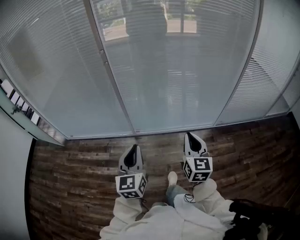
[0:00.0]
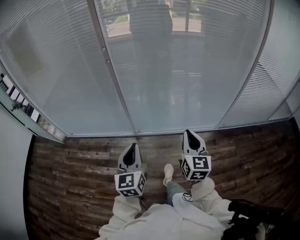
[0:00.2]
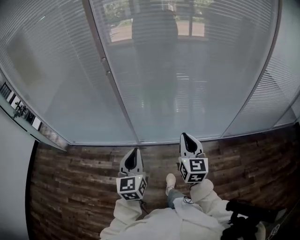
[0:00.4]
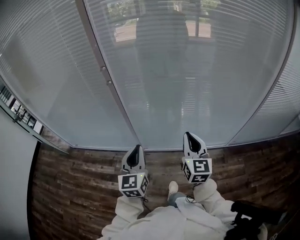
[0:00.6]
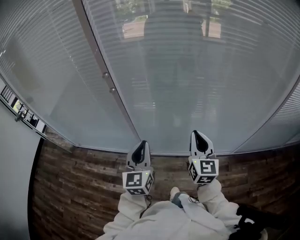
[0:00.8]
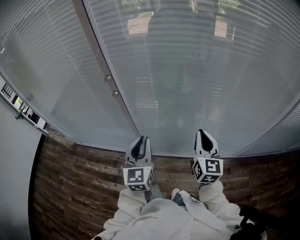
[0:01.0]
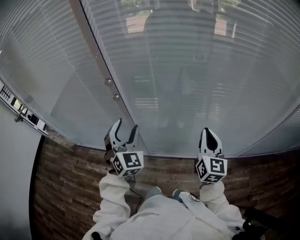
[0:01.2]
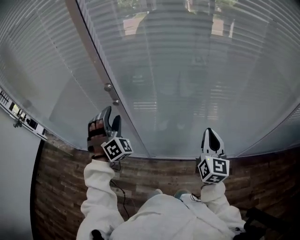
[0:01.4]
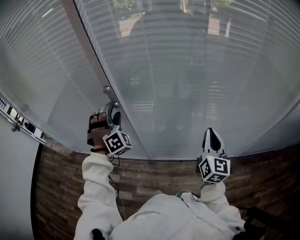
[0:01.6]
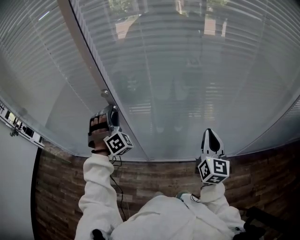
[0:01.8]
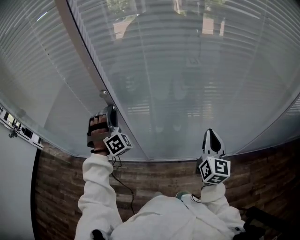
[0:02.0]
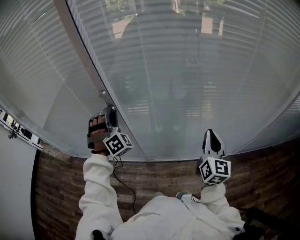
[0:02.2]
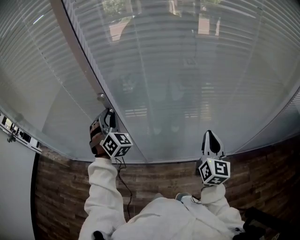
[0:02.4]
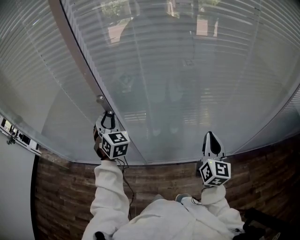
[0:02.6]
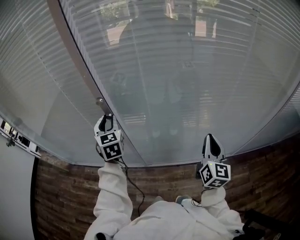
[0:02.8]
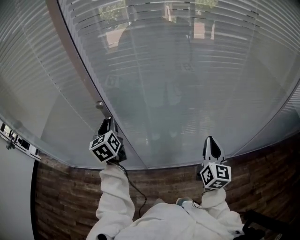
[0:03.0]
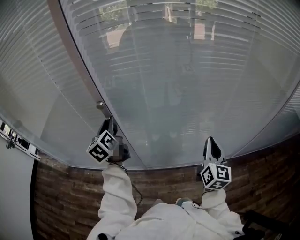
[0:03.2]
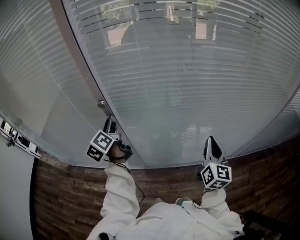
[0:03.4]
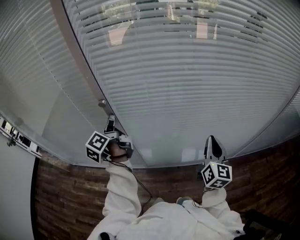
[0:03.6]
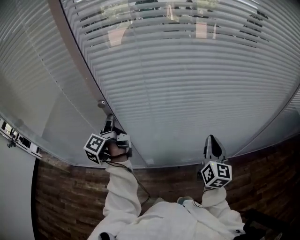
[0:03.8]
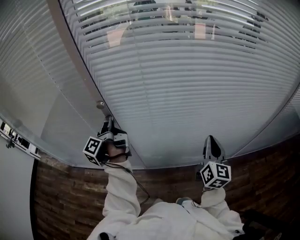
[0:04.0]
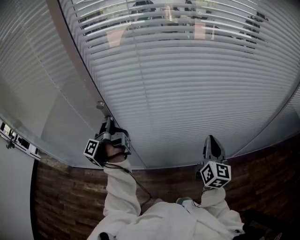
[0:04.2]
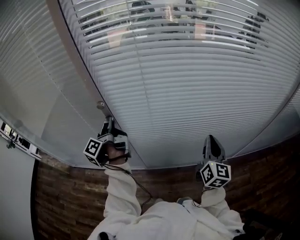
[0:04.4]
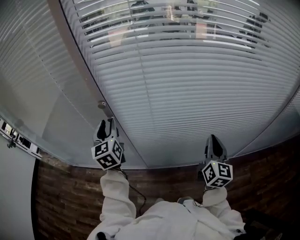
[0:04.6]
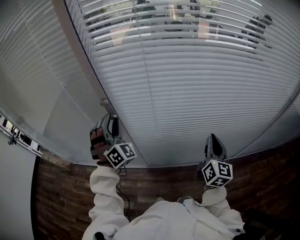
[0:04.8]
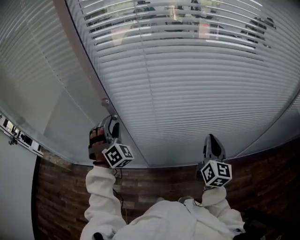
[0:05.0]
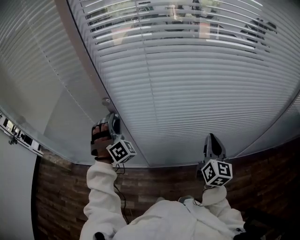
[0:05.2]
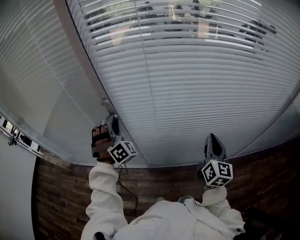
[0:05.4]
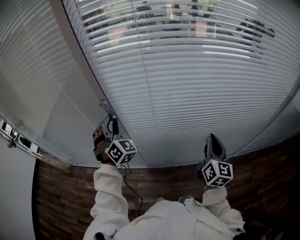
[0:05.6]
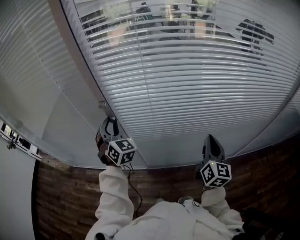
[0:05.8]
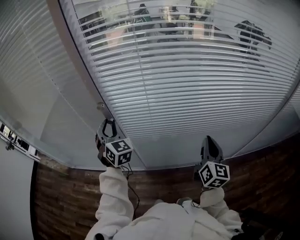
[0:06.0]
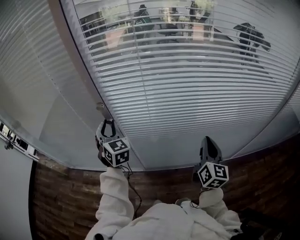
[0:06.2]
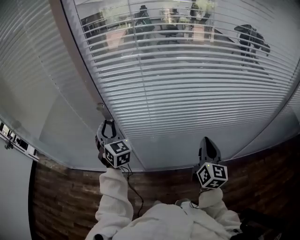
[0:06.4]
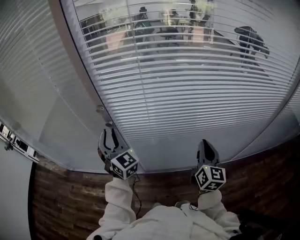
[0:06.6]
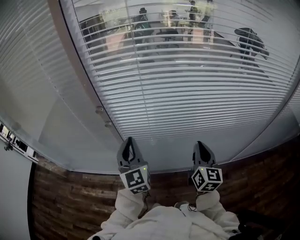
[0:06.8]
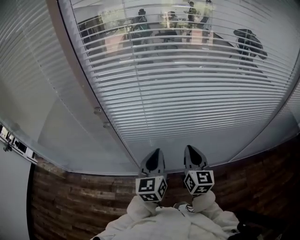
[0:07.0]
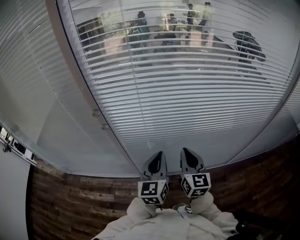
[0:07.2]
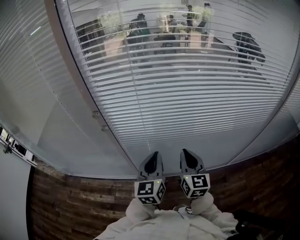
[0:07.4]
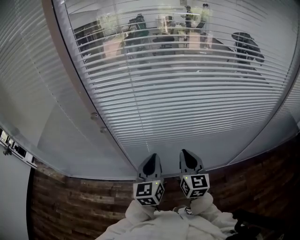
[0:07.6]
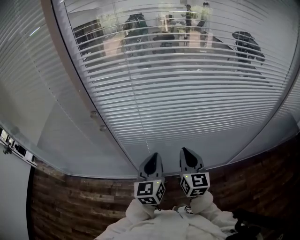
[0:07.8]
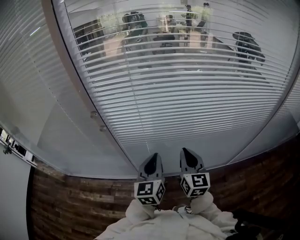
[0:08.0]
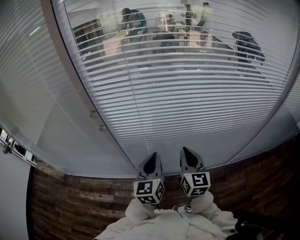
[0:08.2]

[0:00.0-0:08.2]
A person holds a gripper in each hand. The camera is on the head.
0.0 to 1.6 s: Both grippers are carried forward, about 50 cm. The left gripper rolls clockwise, seen from behind, by roughly 90 degrees, and opens.
1.6 to 3.2 s: The left gripper twists roughly 110 degrees counterclockwise, seen from behind, and closes.
3.2 to 5.0 s: The left gripper rotates around the line of its fingers by some 100 degrees, clockwise from behind.
5.0 to 6.6 s: The left gripper twists about 50 degrees counterclockwise, seen from behind.
6.6 to 8.2 s: The right gripper is displaced to the left by some 5 cm. Meanwhile the left gripper heads to the right, covering approximately 20 cm, swivels roughly 60 degrees, and closes.

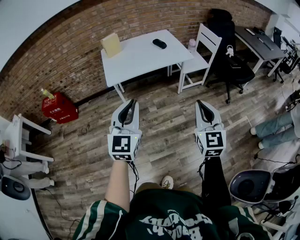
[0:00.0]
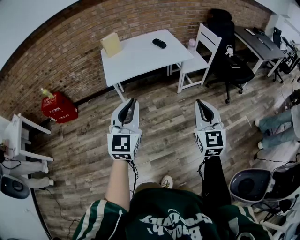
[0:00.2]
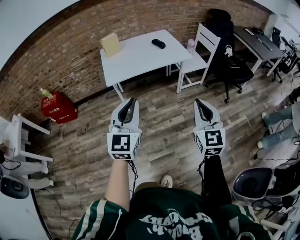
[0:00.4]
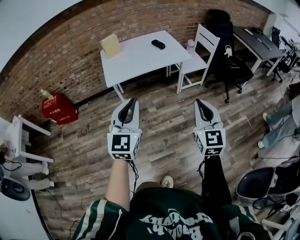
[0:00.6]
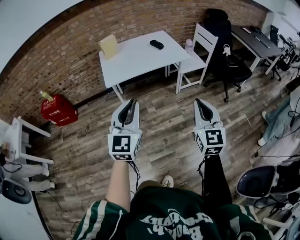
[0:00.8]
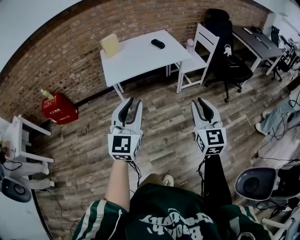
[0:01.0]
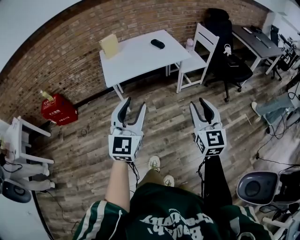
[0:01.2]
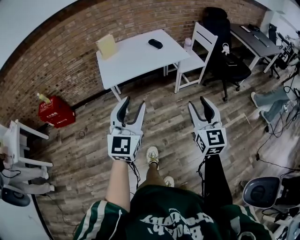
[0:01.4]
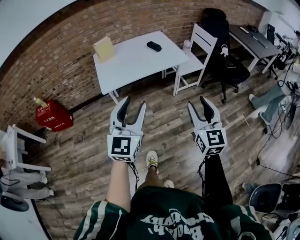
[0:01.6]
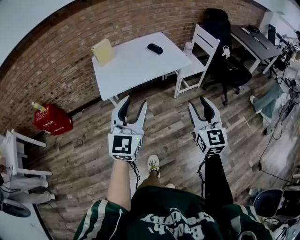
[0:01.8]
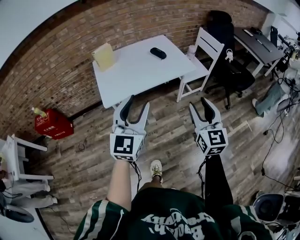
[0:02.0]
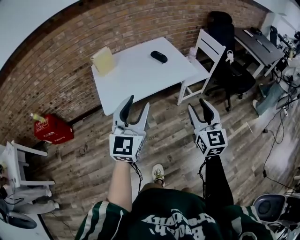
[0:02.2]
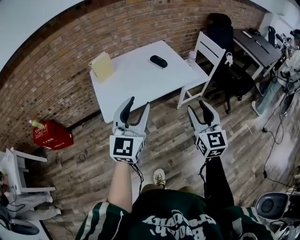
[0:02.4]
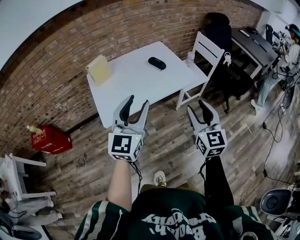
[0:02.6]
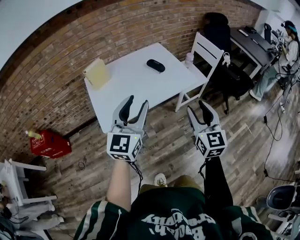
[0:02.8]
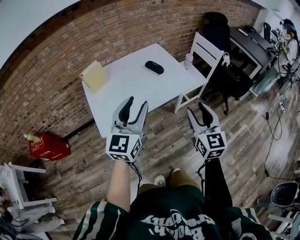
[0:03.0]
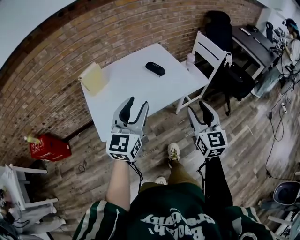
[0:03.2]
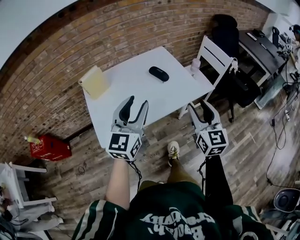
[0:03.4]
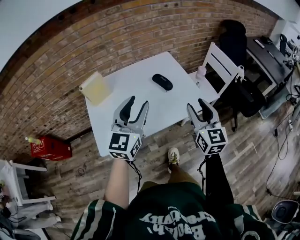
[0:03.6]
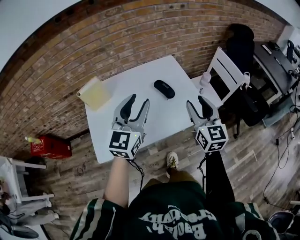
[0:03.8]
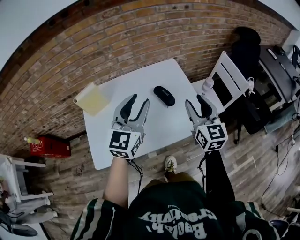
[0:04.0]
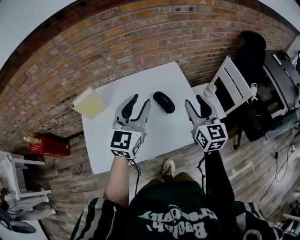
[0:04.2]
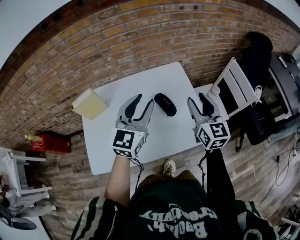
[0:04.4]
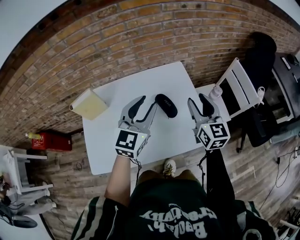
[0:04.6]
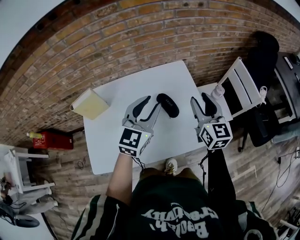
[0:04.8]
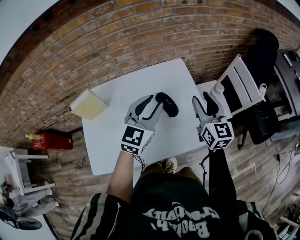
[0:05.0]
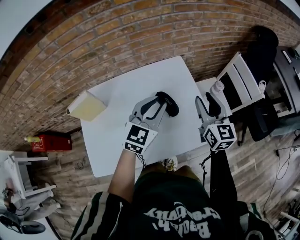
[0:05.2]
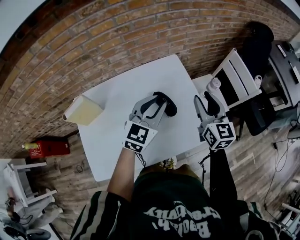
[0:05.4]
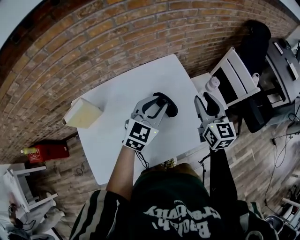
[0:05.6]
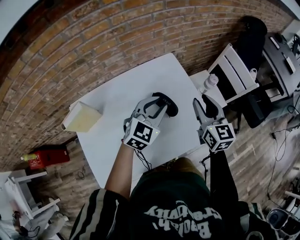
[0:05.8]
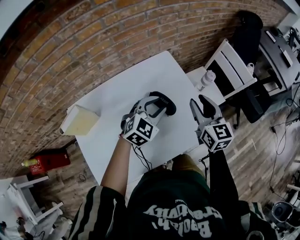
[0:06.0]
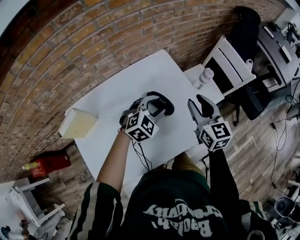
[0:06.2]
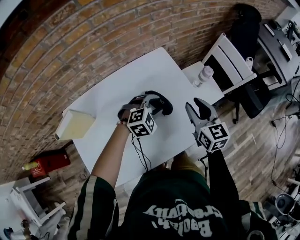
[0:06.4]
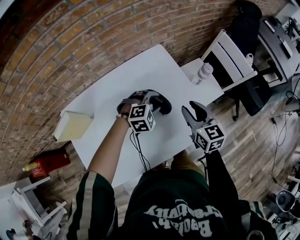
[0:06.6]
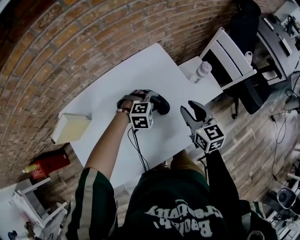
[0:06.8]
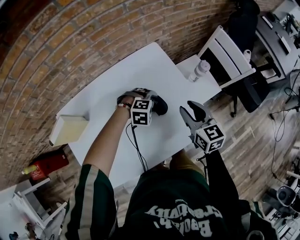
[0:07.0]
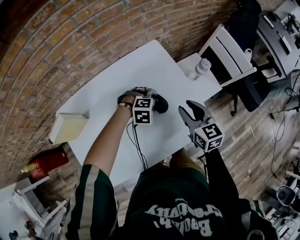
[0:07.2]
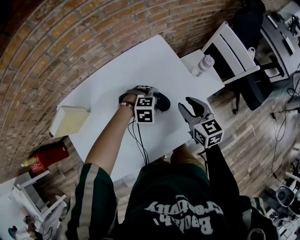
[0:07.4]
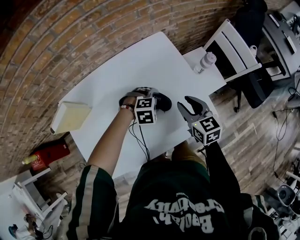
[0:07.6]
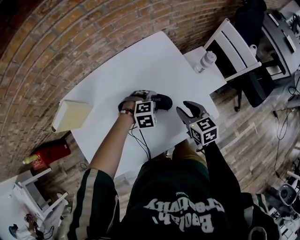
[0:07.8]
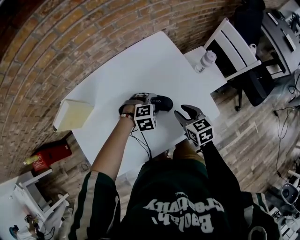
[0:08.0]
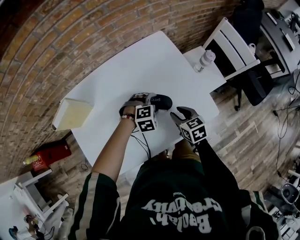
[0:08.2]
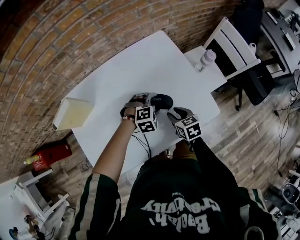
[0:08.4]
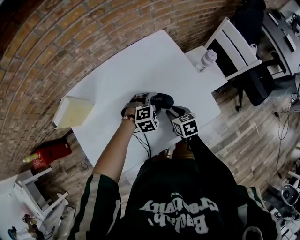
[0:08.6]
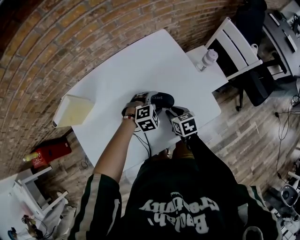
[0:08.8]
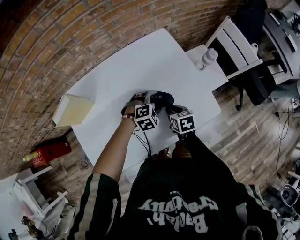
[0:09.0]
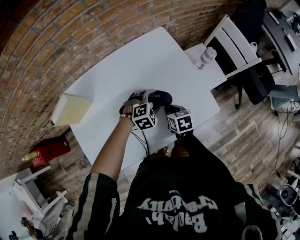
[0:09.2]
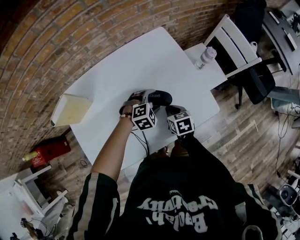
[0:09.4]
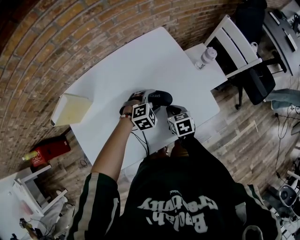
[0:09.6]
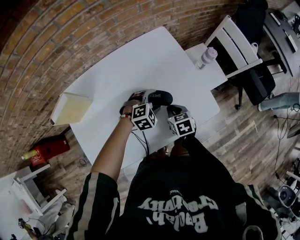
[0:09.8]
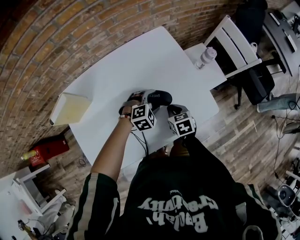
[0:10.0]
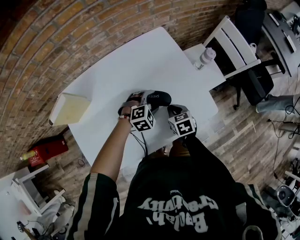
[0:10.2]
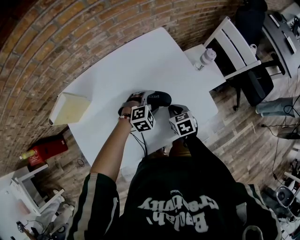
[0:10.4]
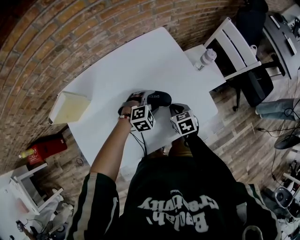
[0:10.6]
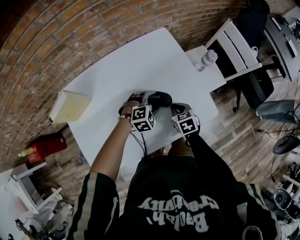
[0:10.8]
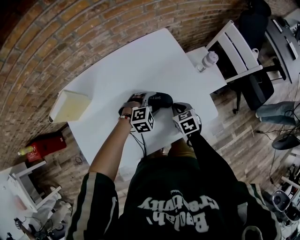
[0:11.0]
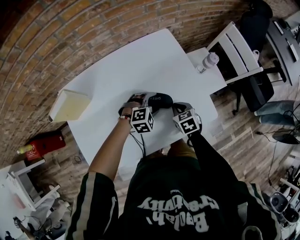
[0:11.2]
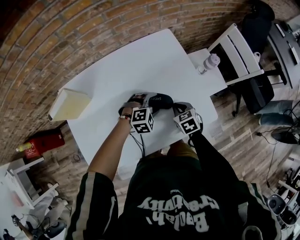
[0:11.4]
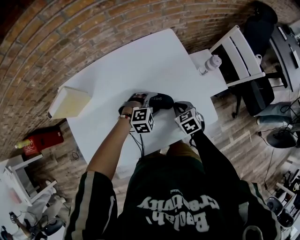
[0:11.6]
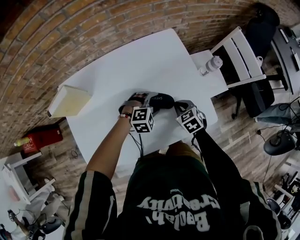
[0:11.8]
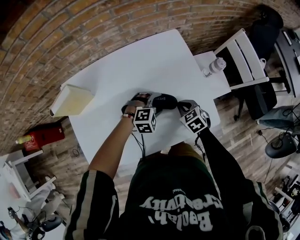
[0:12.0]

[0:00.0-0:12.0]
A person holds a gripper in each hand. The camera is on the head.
0.0 to 1.6 s: The two grippers go some 5 cm forward. The right gripper opens. Meanwhile the left gripper opens up.
1.6 to 3.0 s: The grippers both shift forward by roughly 30 cm.
3.0 to 4.4 s: The grippers both shift forward by approximately 40 cm.
4.4 to 6.0 s: The left gripper travels downward and forward by roughly 15 cm, and swivels roughly 40 degrees, while the right gripper goes approximately 5 cm downward.
6.0 to 7.6 s: Both grippers move downward, approximately 15 cm. The left gripper angles its fingers downward, by about 40 degrees, and opens its fingers.
7.6 to 9.0 s: The right gripper heads downward, covering some 15 cm, and rotates approximately 30 degrees.
9.0 to 10.4 s: The grippers make only small movements.
10.4 to 12.0 s: The right gripper swivels about 30 degrees.

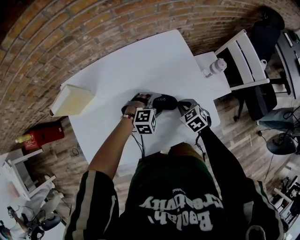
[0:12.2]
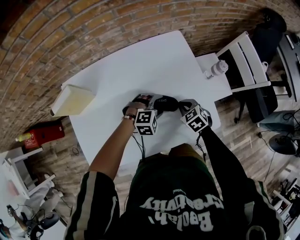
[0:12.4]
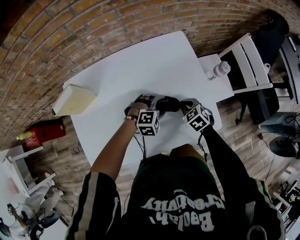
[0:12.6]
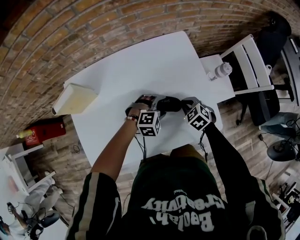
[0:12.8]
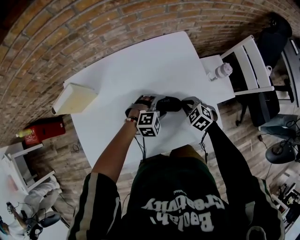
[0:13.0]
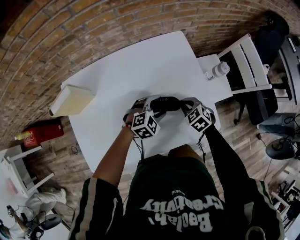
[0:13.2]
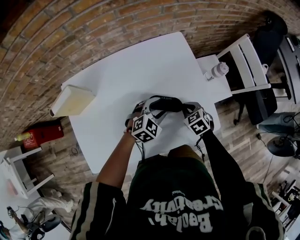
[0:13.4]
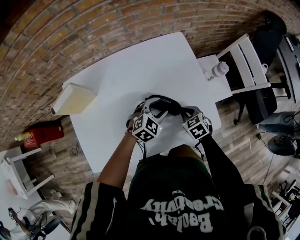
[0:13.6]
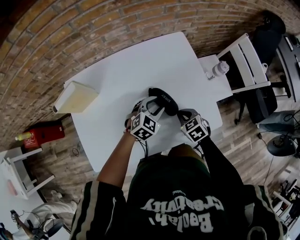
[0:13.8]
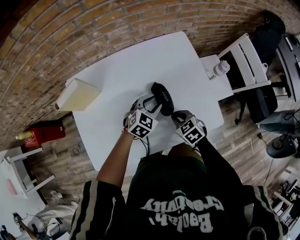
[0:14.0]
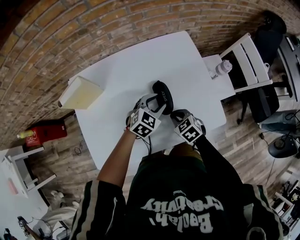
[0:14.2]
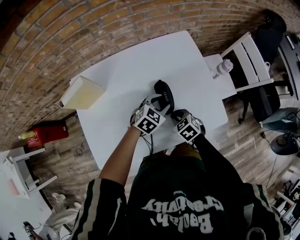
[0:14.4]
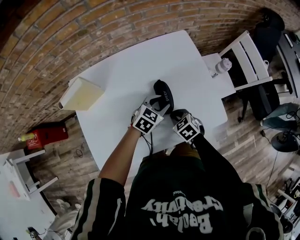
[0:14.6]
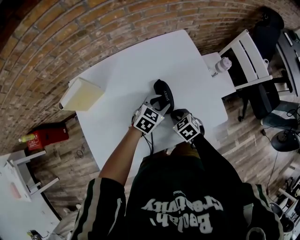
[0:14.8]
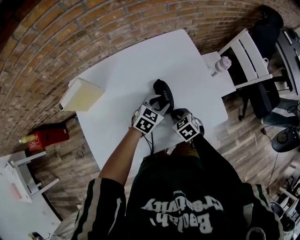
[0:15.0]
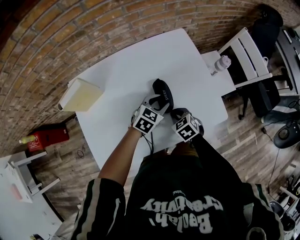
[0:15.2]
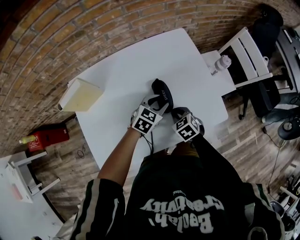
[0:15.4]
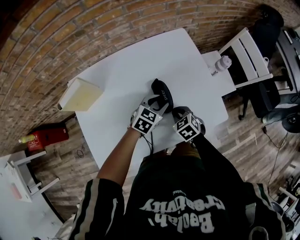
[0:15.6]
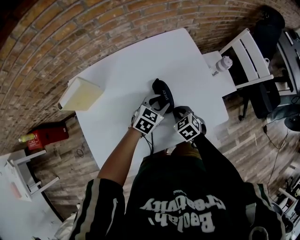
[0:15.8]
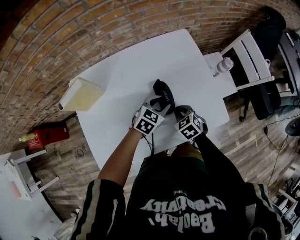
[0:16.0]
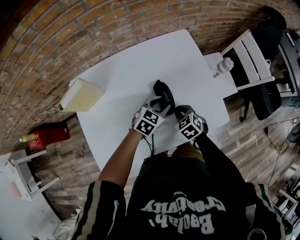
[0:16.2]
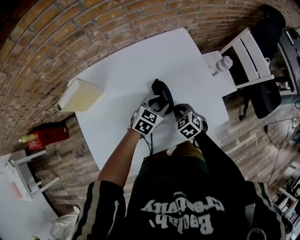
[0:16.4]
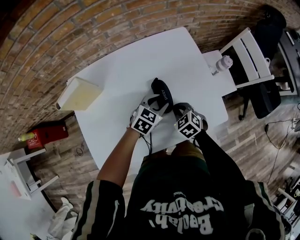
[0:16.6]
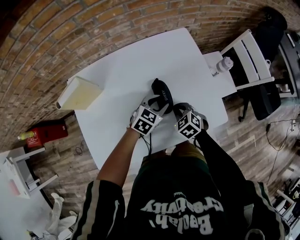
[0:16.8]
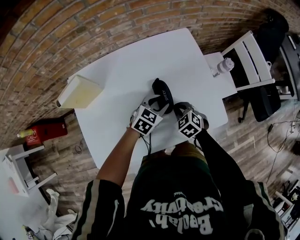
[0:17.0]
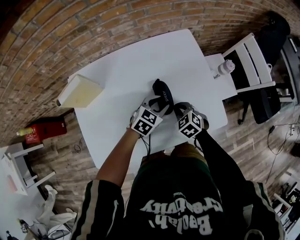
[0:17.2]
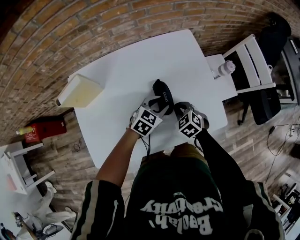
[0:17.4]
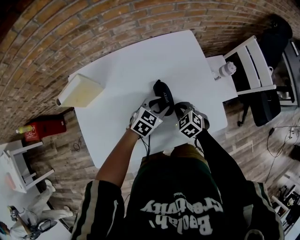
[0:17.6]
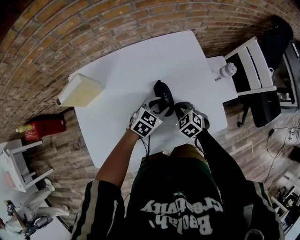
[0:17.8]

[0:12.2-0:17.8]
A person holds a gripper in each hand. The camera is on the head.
12.2 to 13.6 s: The left gripper swivels approximately 40 degrees.
13.6 to 15.0 s: The right gripper shifts some 10 cm to the left.
15.0 to 17.8 s: There are only small adjustments of the grippers.
